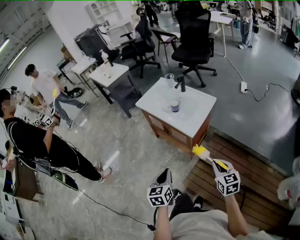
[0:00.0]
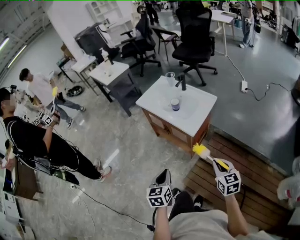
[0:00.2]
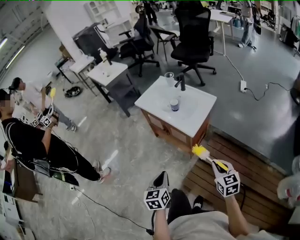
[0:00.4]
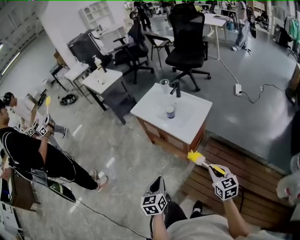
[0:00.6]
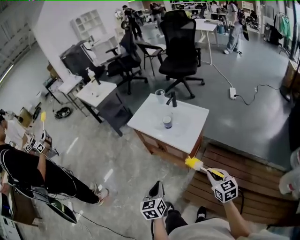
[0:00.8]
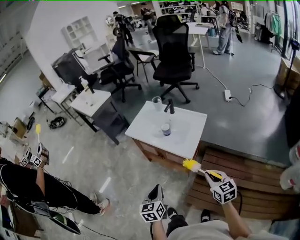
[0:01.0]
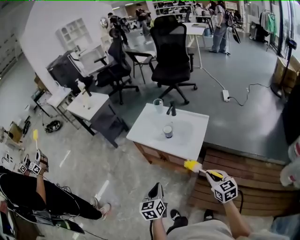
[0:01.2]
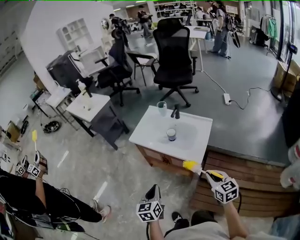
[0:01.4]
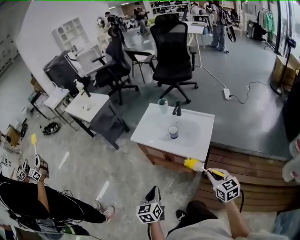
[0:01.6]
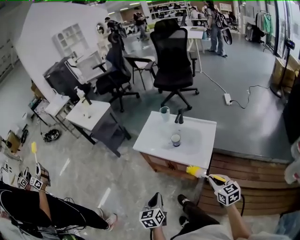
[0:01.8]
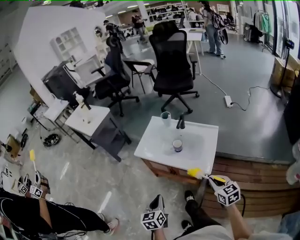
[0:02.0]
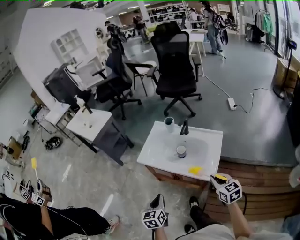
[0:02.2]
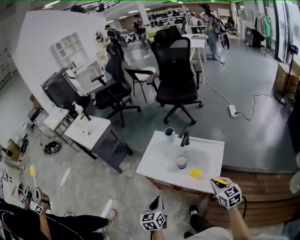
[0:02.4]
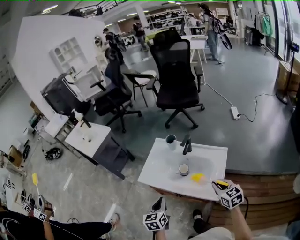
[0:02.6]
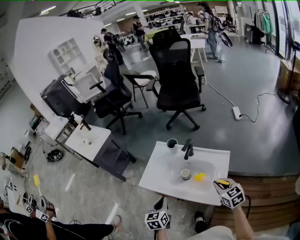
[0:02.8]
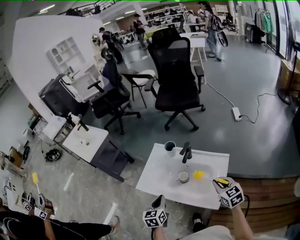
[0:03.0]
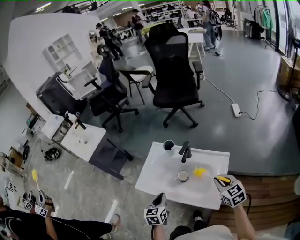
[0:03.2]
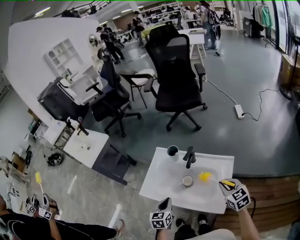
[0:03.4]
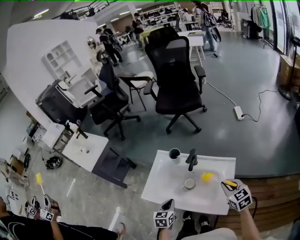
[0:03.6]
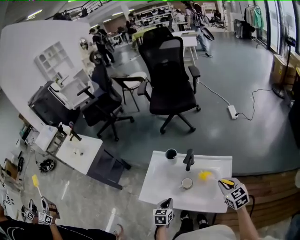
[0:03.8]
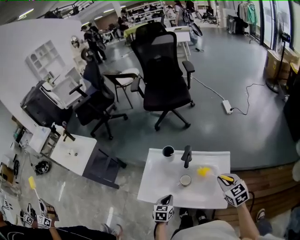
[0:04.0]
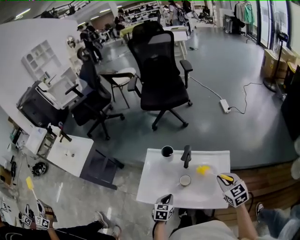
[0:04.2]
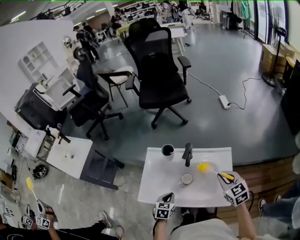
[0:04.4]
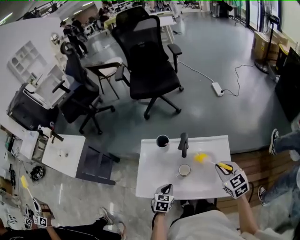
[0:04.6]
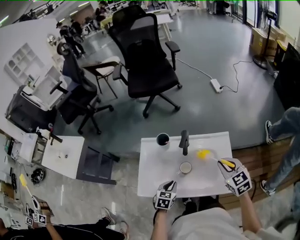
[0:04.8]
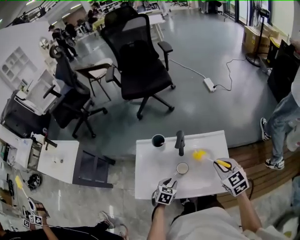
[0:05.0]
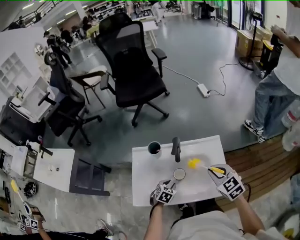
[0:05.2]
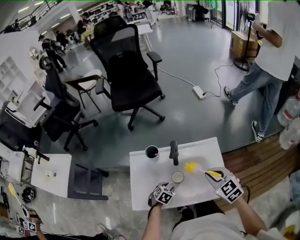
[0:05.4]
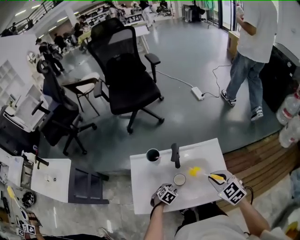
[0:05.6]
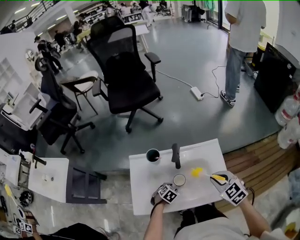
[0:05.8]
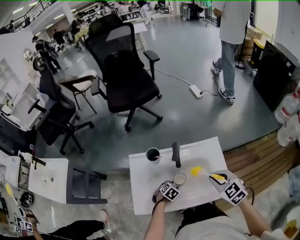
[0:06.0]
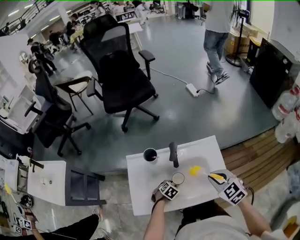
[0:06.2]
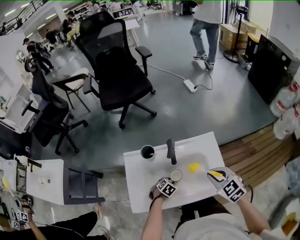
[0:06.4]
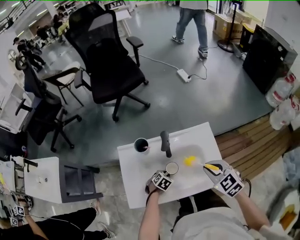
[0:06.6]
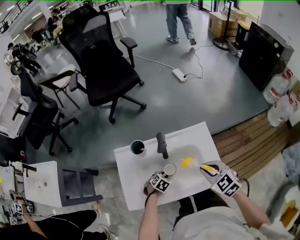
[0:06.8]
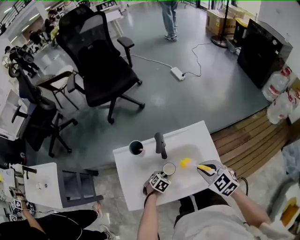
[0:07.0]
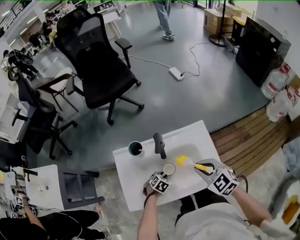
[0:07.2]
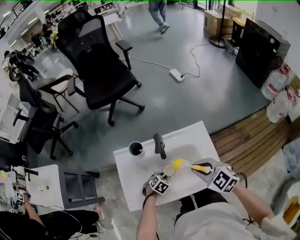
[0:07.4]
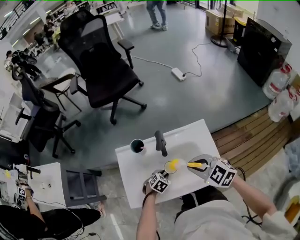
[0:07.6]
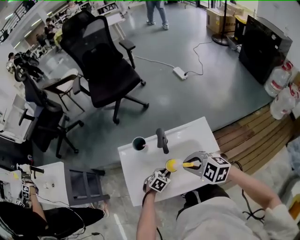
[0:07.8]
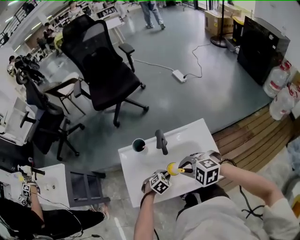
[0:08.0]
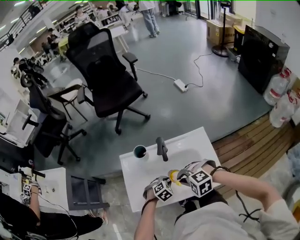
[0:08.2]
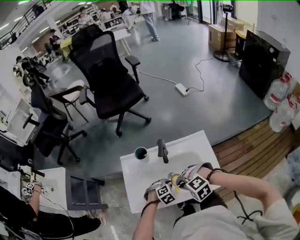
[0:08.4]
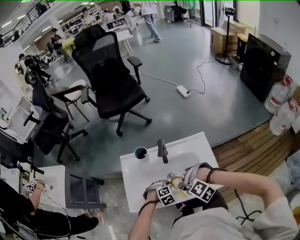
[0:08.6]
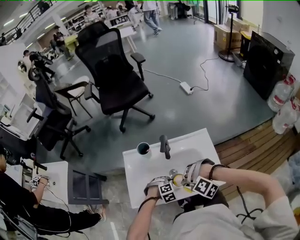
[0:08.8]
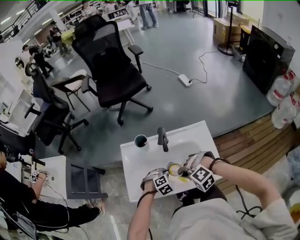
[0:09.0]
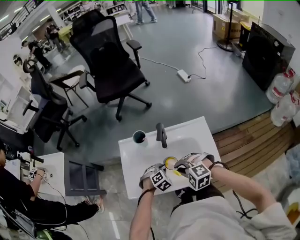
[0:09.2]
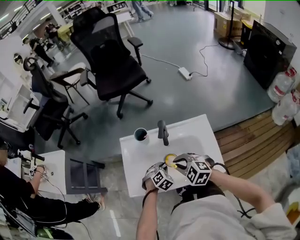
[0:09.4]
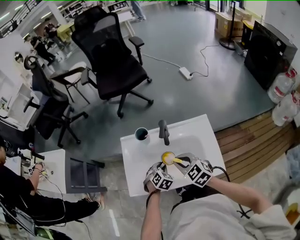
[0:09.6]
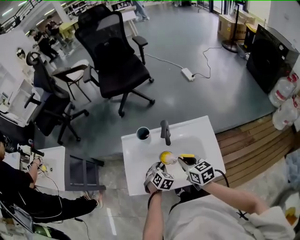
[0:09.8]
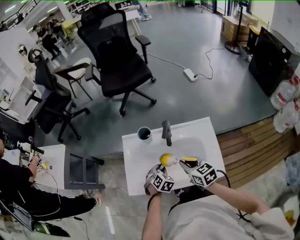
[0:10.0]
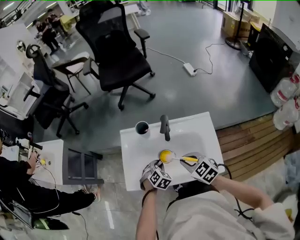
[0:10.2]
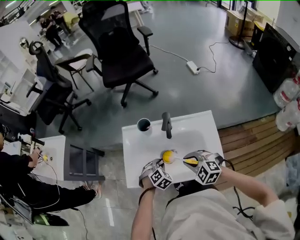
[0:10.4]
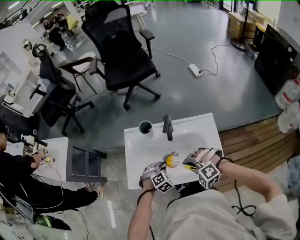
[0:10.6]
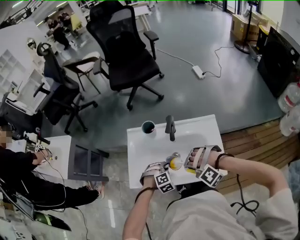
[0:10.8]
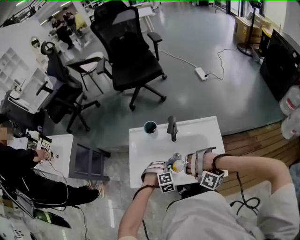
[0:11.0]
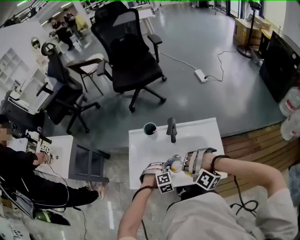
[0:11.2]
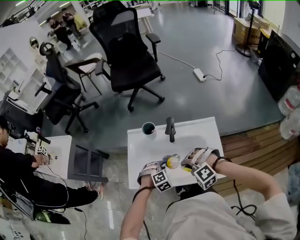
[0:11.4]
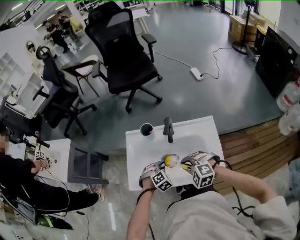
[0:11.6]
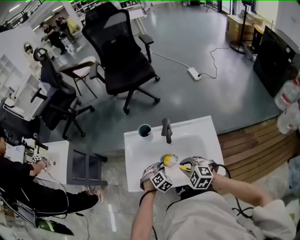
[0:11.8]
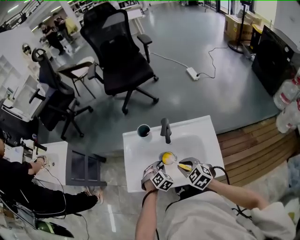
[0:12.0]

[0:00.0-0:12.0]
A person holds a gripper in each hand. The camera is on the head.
0:00.0 to 0:01.6: Both grippers move forward and to the left, about 25 cm.
0:01.6 to 0:03.0: Both grippers travel together forward, some 30 cm.
0:03.0 to 0:04.4: The left gripper heads downward and forward, covering some 15 cm, and rotates approximately 30 degrees; the right gripper travels forward by some 5 cm.
0:04.4 to 0:06.0: The left gripper travels downward by approximately 15 cm, rotates roughly 50 degrees, and opens up. The right gripper changes place by some 5 cm.
0:06.0 to 0:07.6: The left gripper closes up. The right gripper ends up about 5 cm from where it was.
0:07.6 to 0:09.0: The left gripper moves some 5 cm, and turns by roughly 30 degrees. Meanwhile the right gripper travels downward by about 10 cm, and rotates around the line of its fingers by about 60 degrees, counterclockwise from behind.
0:09.0 to 0:10.4: The left gripper changes its angle by some 20 degrees, while the right gripper changes its angle by roughly 40 degrees.
0:10.4 to 0:12.0: The right gripper rotates some 30 degrees.

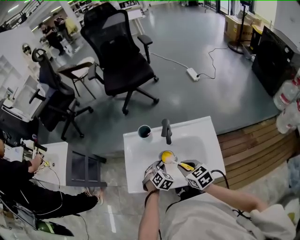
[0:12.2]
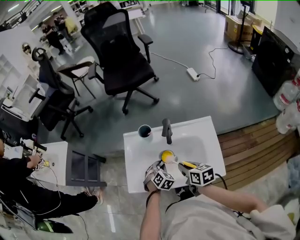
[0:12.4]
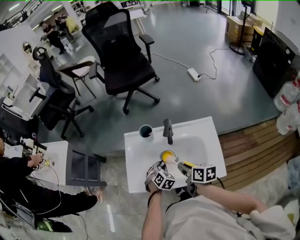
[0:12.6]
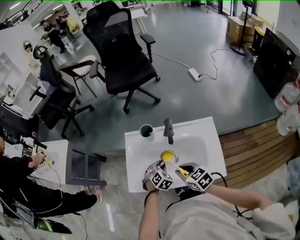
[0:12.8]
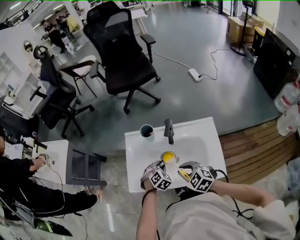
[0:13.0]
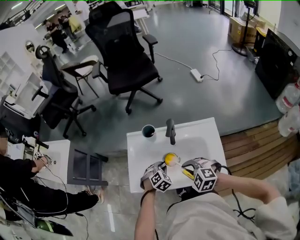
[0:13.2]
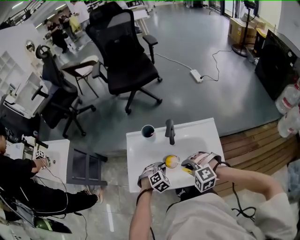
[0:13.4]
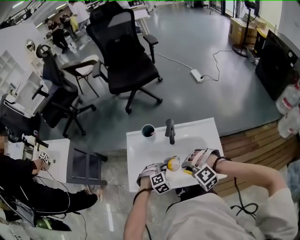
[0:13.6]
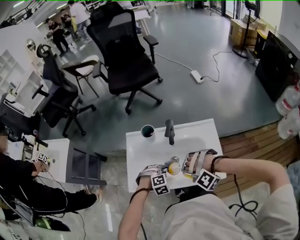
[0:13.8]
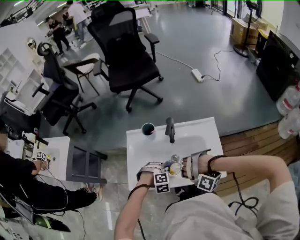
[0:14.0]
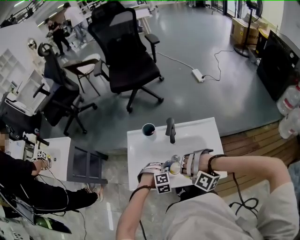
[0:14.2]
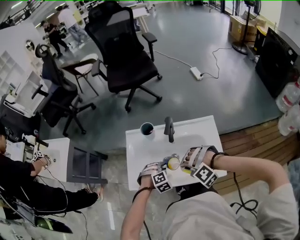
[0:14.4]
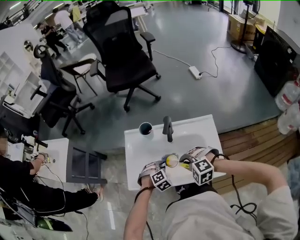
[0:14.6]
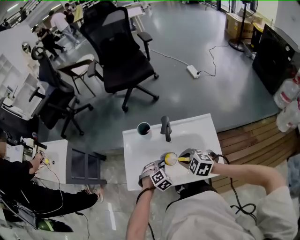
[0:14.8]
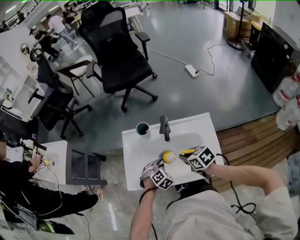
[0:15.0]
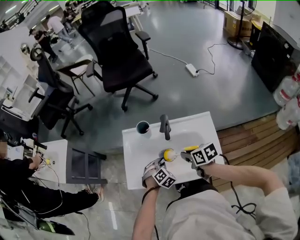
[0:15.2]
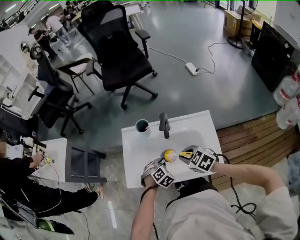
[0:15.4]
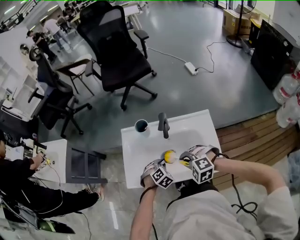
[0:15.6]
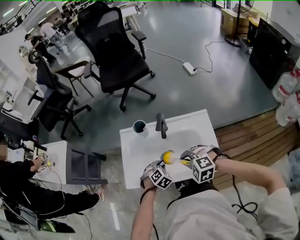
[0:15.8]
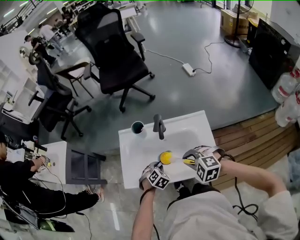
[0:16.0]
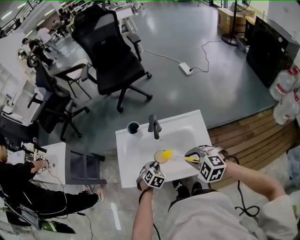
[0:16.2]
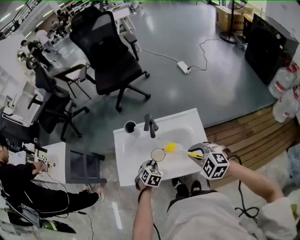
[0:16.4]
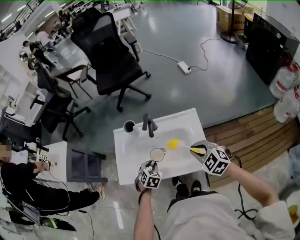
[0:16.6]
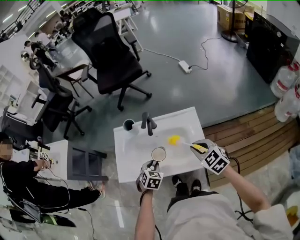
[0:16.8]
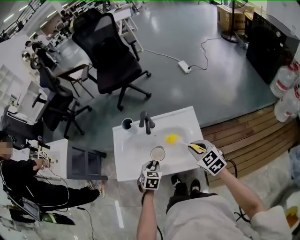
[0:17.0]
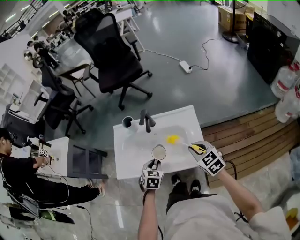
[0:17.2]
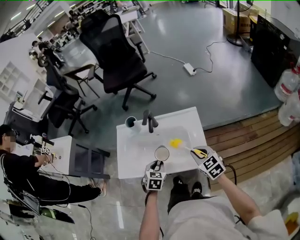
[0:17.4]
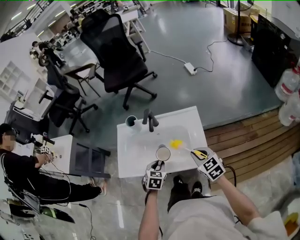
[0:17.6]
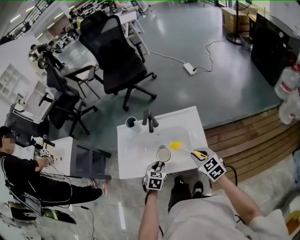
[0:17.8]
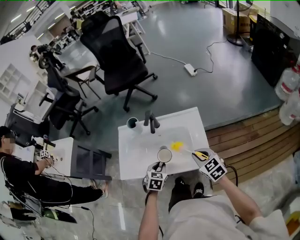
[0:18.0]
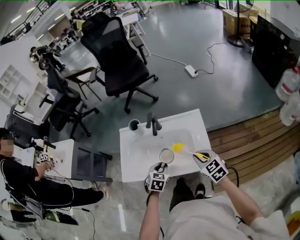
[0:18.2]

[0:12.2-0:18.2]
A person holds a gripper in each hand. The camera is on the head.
0:12.2 to 0:13.8: The left gripper swivels about 40 degrees, while the right gripper travels backward by approximately 5 cm, and rolls counterclockwise, seen from behind, by some 120 degrees.
0:13.8 to 0:15.2: The right gripper travels forward and to the right by approximately 10 cm, and twists roughly 140 degrees clockwise, seen from behind, while the left gripper rotates roughly 30 degrees.
0:15.2 to 0:16.6: The right gripper goes approximately 15 cm to the right, backward and upward, and twists some 50 degrees counterclockwise, seen from behind; the left gripper moves approximately 5 cm, and turns by some 20 degrees.
0:16.6 to 0:18.2: The right gripper ends up roughly 5 cm from where it was, and changes its angle by some 20 degrees. The left gripper ends up roughly 5 cm from where it was.

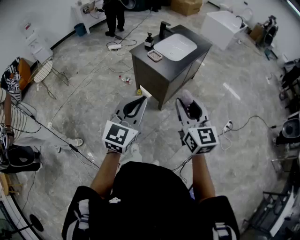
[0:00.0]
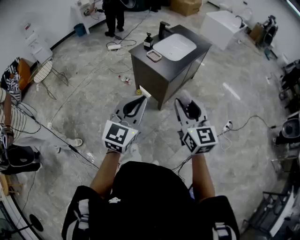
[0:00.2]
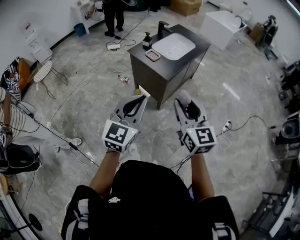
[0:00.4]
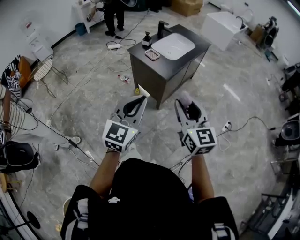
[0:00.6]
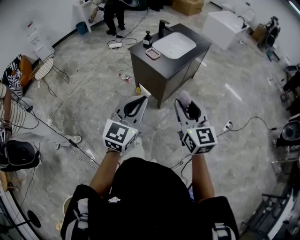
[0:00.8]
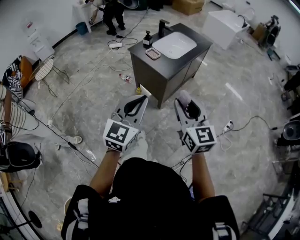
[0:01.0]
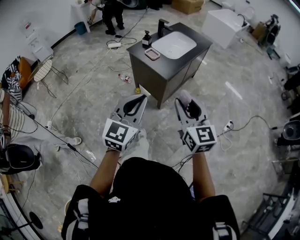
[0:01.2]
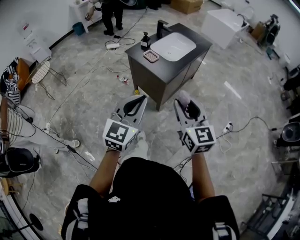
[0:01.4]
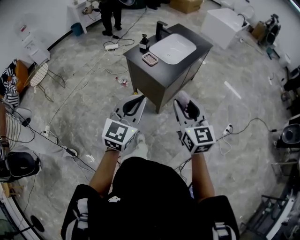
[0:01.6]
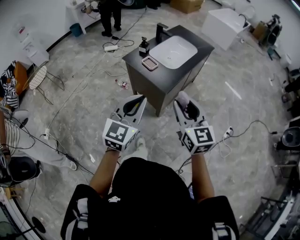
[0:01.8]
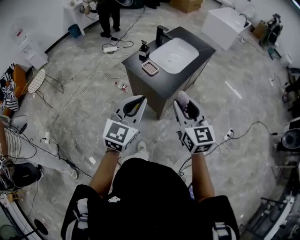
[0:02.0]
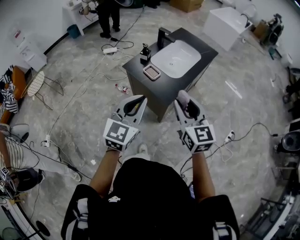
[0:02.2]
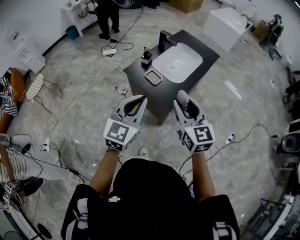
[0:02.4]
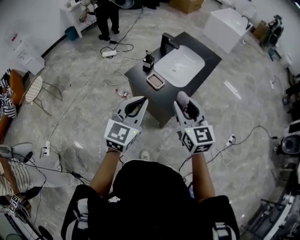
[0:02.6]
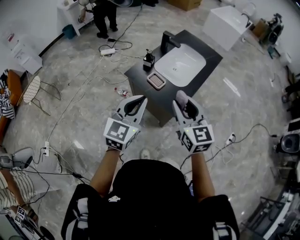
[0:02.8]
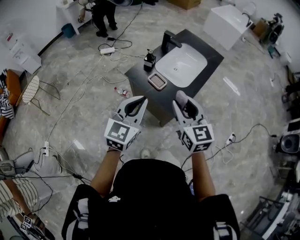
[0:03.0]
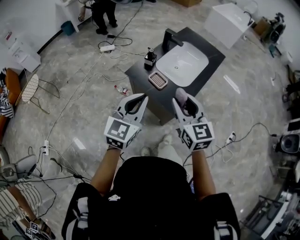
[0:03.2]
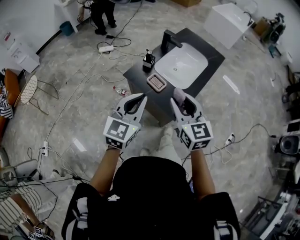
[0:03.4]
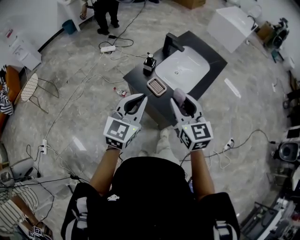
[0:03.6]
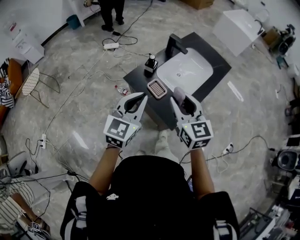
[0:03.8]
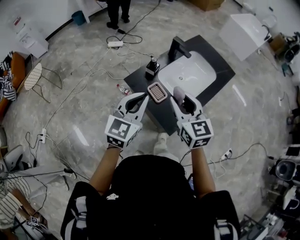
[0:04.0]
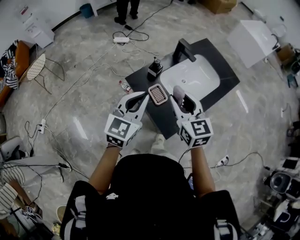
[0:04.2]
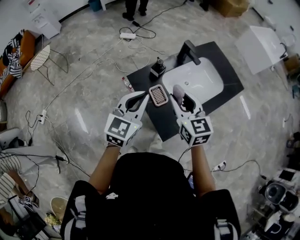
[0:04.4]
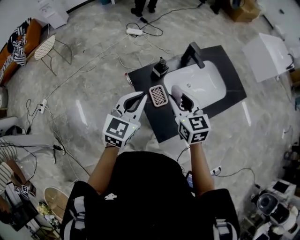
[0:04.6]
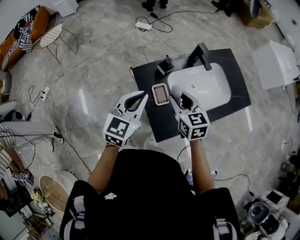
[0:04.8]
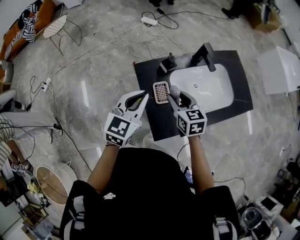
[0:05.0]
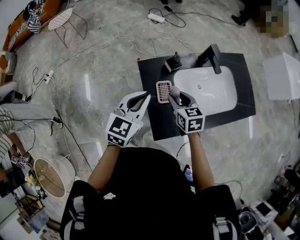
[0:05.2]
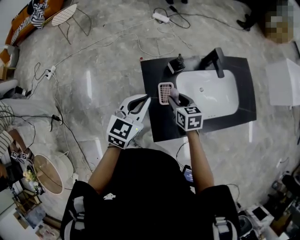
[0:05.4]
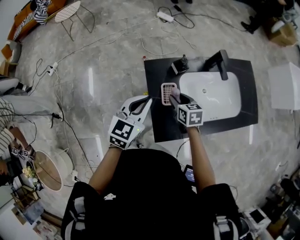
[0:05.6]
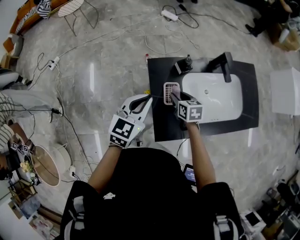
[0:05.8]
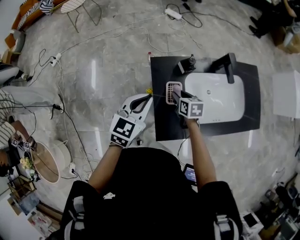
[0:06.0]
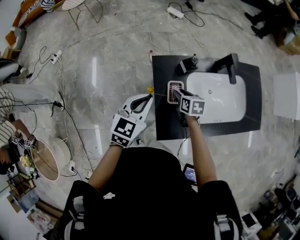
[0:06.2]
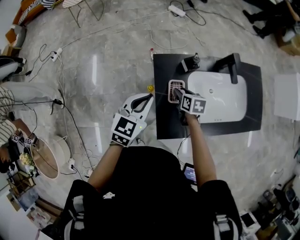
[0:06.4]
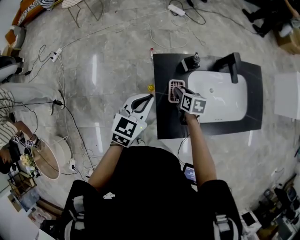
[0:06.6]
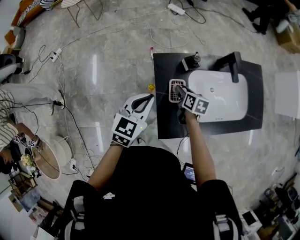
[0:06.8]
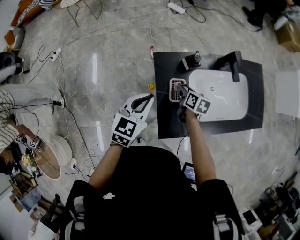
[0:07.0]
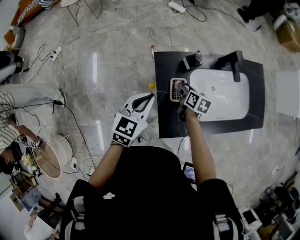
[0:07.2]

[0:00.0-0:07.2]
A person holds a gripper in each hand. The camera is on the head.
0:00.0 to 0:01.4: The right gripper shifts by some 5 cm; the left gripper ends up some 5 cm from where it was.
0:01.4 to 0:02.8: The two grippers go approximately 25 cm forward.
0:02.8 to 0:04.4: The grippers both shift forward by approximately 20 cm. The right gripper rotates approximately 20 degrees.
0:04.4 to 0:05.8: The right gripper heads downward, covering roughly 25 cm, and turns by about 40 degrees, while the left gripper goes about 10 cm downward, and turns by some 20 degrees.
0:05.8 to 0:07.2: The right gripper ends up roughly 5 cm from where it was, and turns by about 20 degrees.
